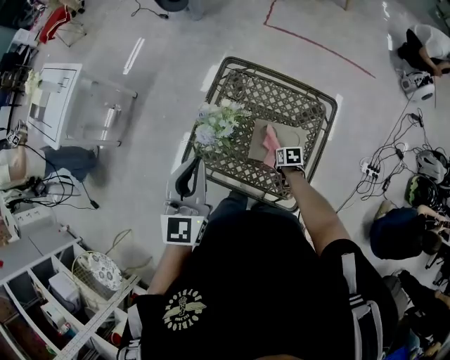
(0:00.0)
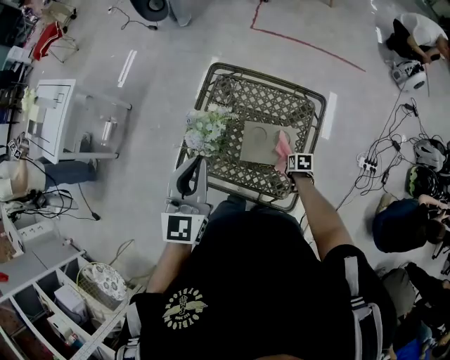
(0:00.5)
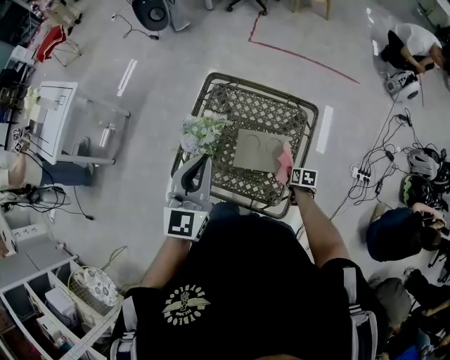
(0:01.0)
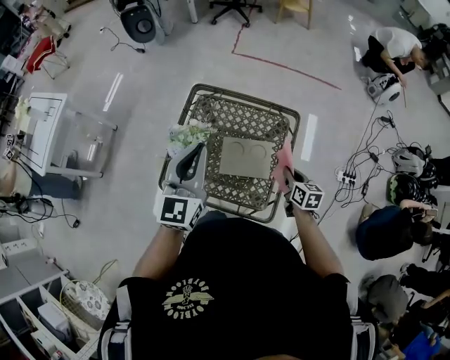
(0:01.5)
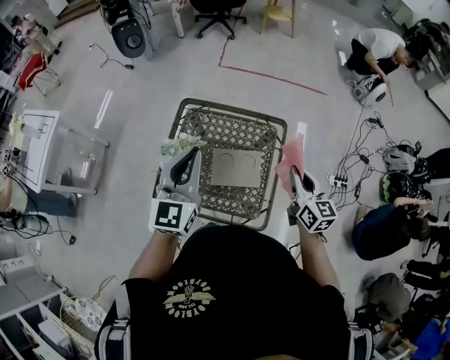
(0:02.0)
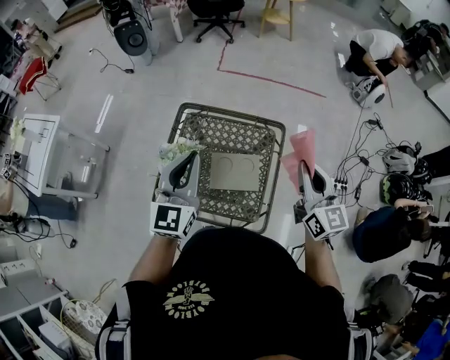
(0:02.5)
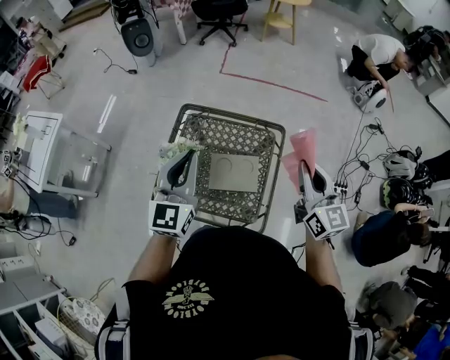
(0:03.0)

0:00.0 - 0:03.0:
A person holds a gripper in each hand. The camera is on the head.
0:00.0 - 0:01.5: The right gripper travels upward and to the right by approximately 25 cm, and swivels roughly 30 degrees. Meanwhile the left gripper heads to the right, covering roughly 10 cm.
0:01.5 - 0:03.0: The right gripper heads upward, covering roughly 30 cm, and points its fingers some 30 degrees further upward.

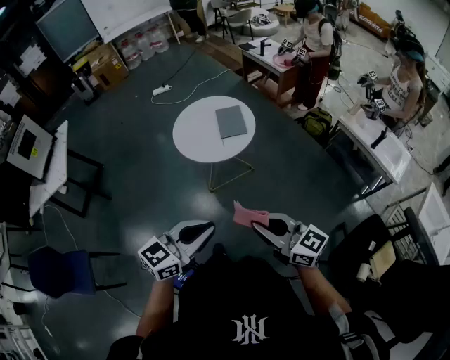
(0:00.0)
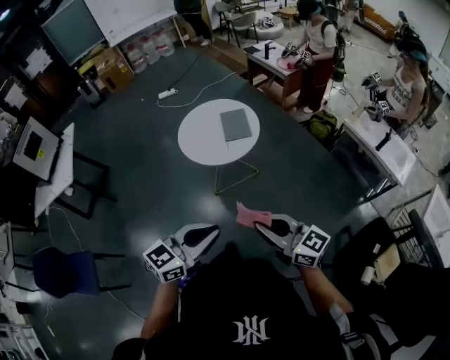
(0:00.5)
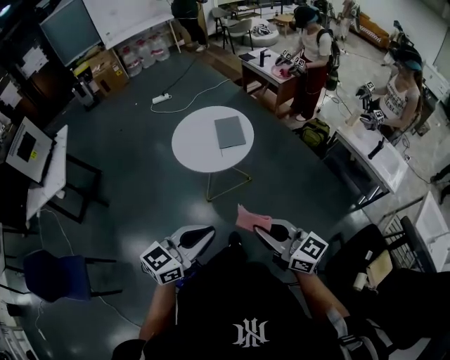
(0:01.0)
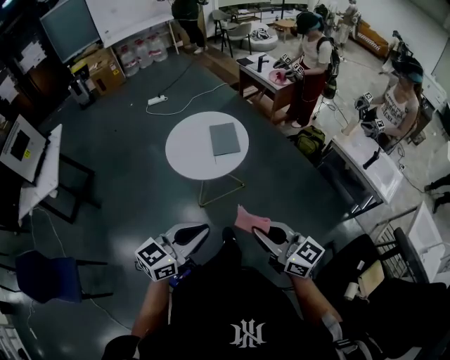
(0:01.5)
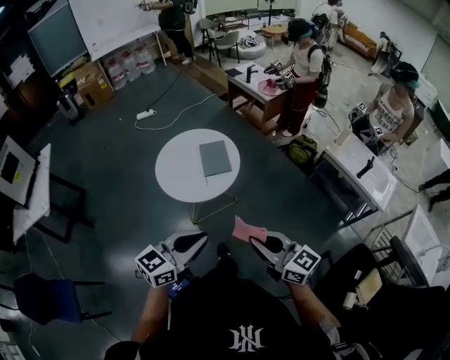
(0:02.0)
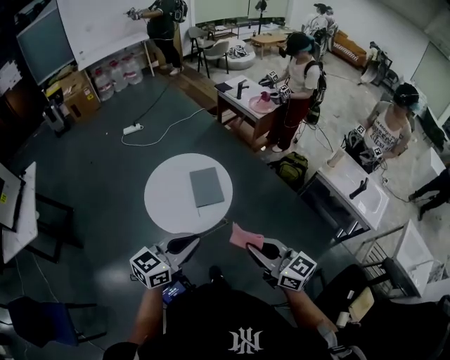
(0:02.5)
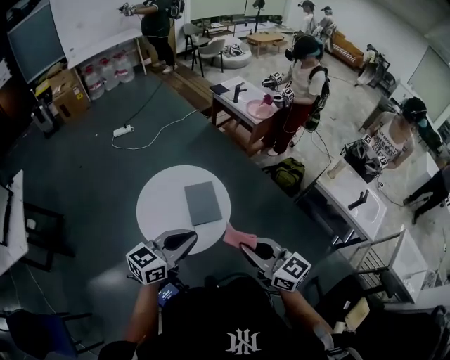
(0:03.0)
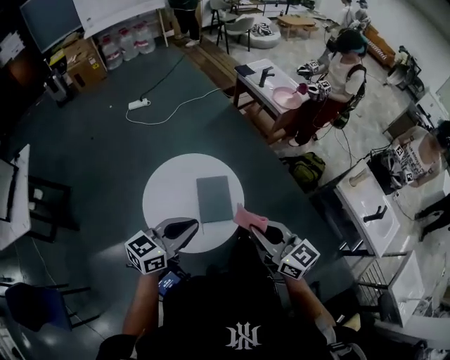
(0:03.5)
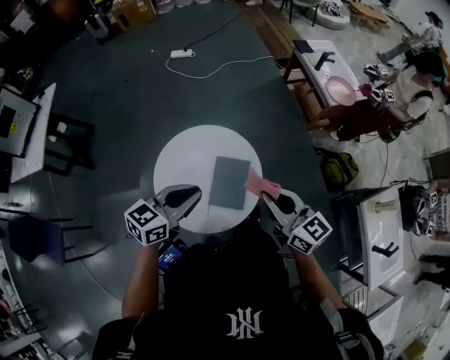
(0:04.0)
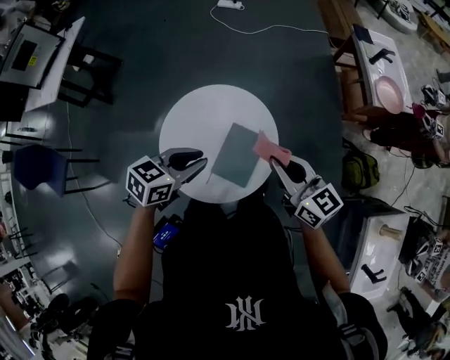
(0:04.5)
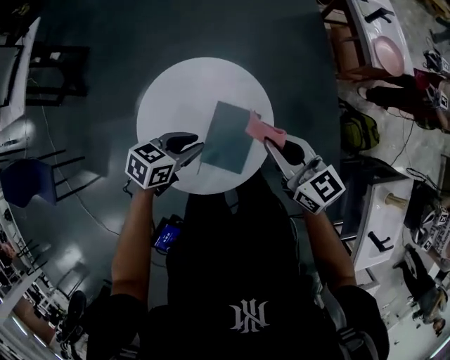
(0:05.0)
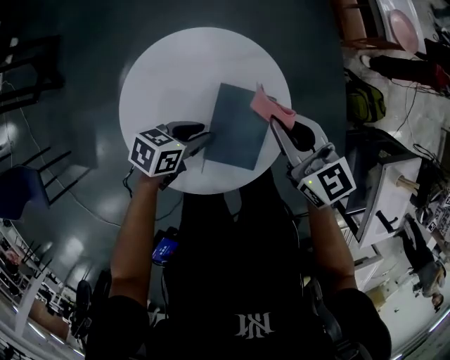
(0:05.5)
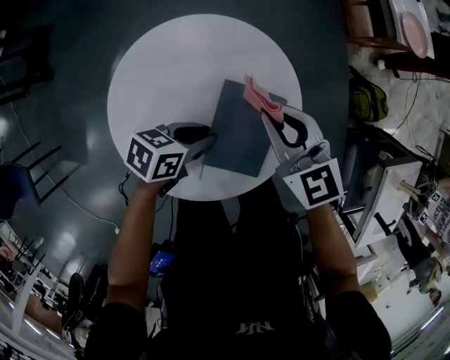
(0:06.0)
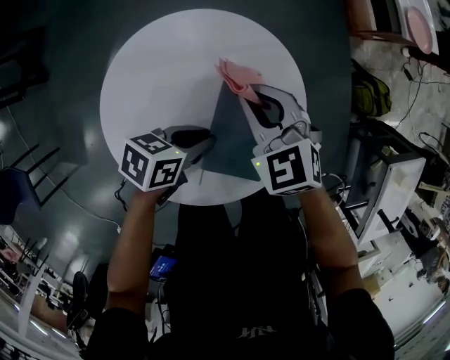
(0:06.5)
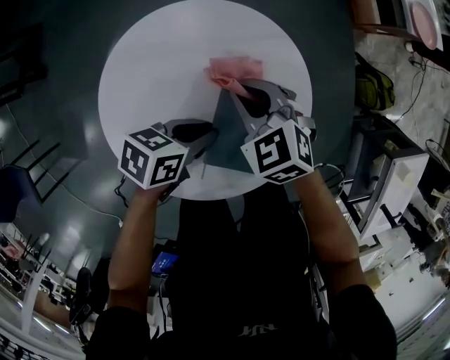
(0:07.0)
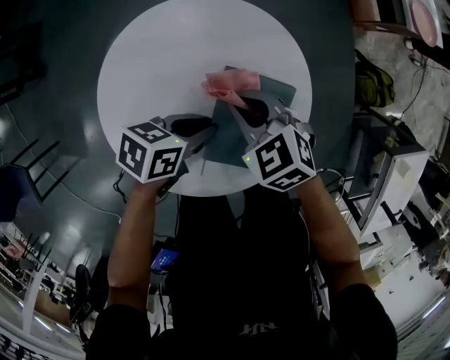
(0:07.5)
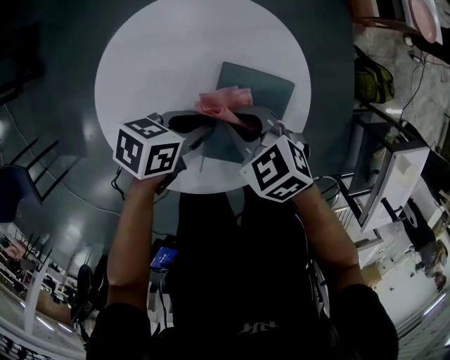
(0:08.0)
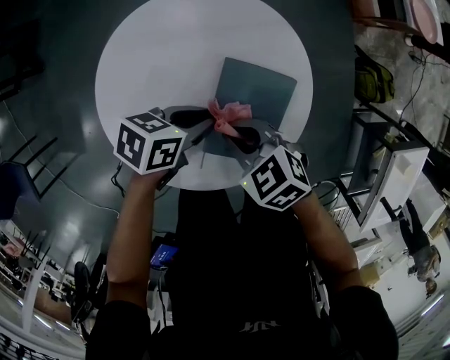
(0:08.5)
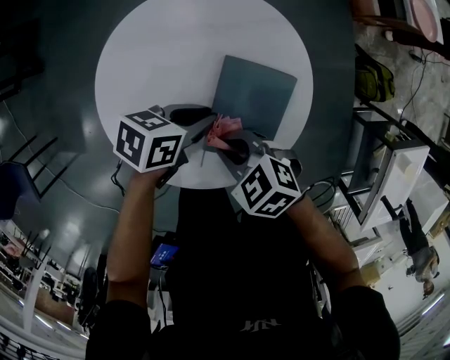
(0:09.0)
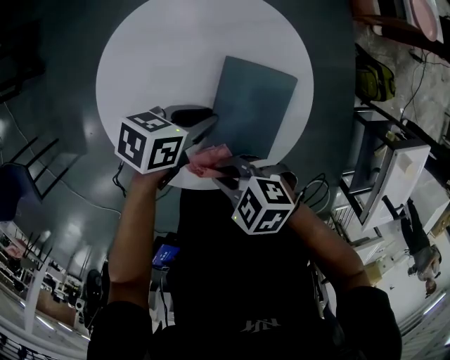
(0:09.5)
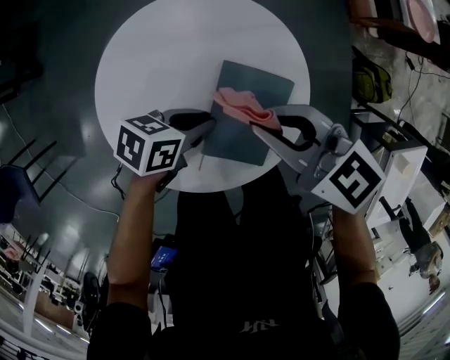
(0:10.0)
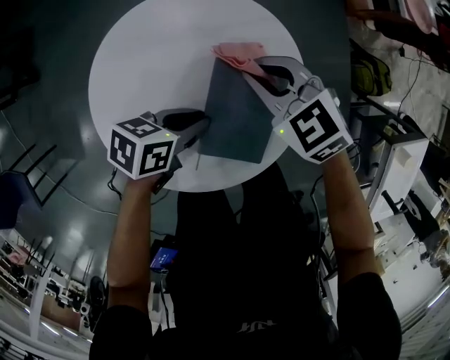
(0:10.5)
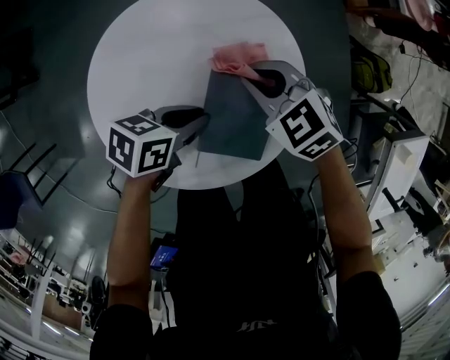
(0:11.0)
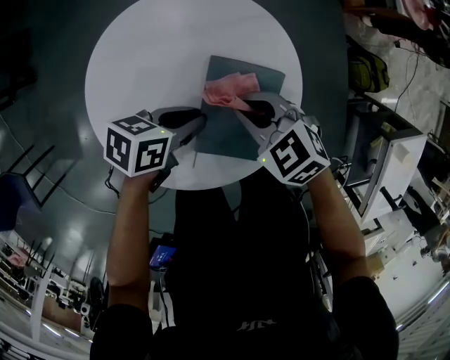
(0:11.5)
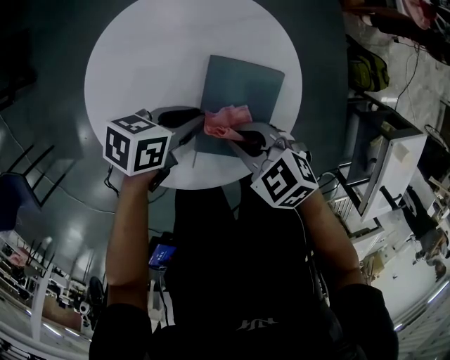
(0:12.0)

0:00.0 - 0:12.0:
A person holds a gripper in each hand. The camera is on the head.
0:00.0 - 0:02.0: Both grippers travel together forward, about 15 cm.
0:02.0 - 0:04.0: The two grippers travel together, forward, about 50 cm. The left gripper changes its angle by about 30 degrees.
0:04.0 - 0:06.0: The left gripper heads downward, covering about 35 cm, and rotates about 40 degrees, while the right gripper moves downward, forward and to the left, about 35 cm, and rotates roughly 30 degrees.
0:06.0 - 0:08.0: The right gripper ends up about 15 cm from where it was, and rotates roughly 30 degrees.
0:08.0 - 0:10.0: The right gripper is displaced upward by some 10 cm, and rotates approximately 20 degrees.
0:10.0 - 0:12.0: The right gripper travels downward by approximately 10 cm.

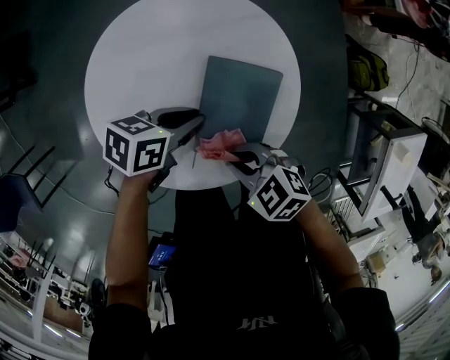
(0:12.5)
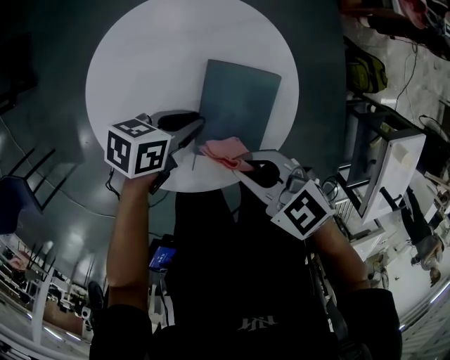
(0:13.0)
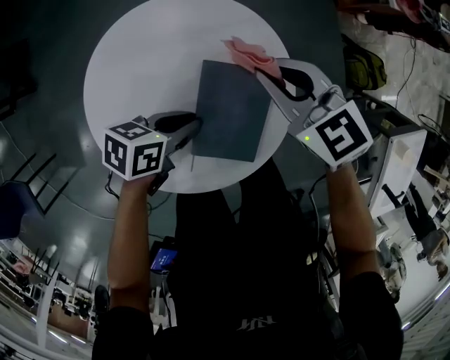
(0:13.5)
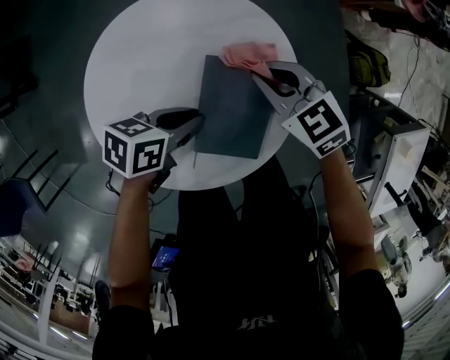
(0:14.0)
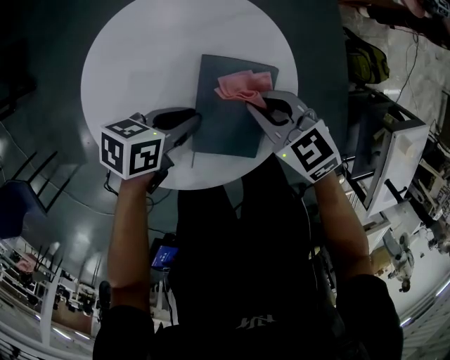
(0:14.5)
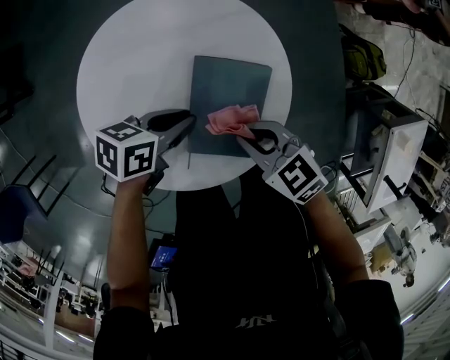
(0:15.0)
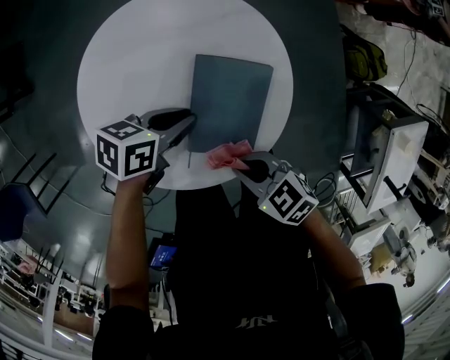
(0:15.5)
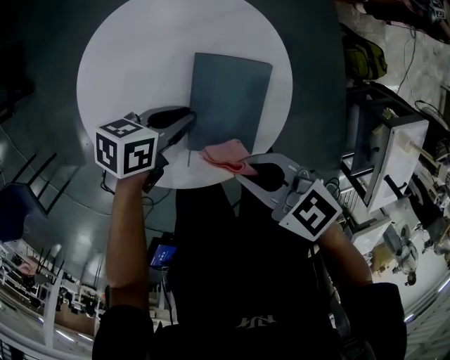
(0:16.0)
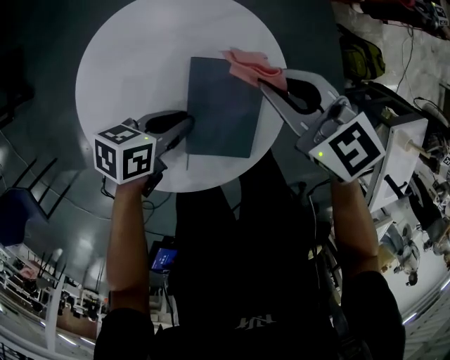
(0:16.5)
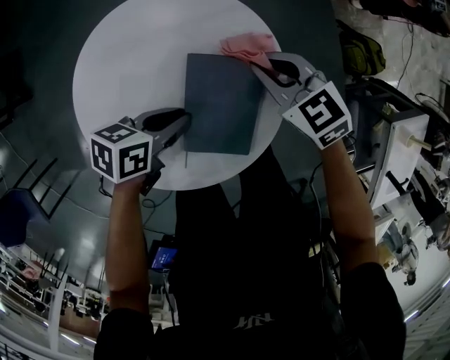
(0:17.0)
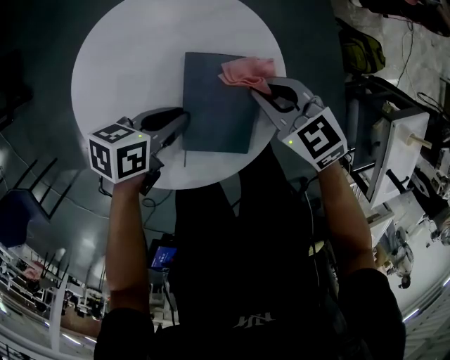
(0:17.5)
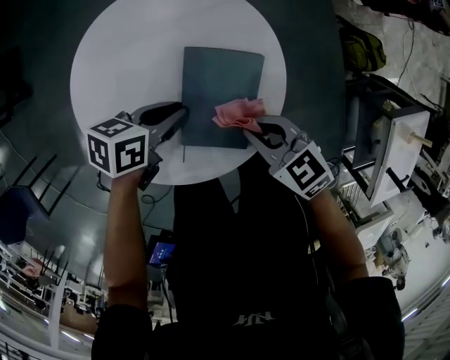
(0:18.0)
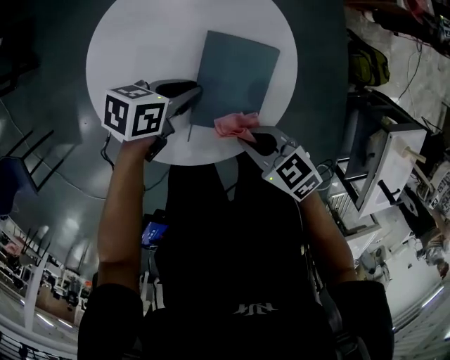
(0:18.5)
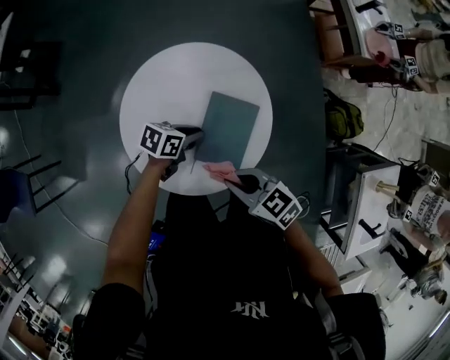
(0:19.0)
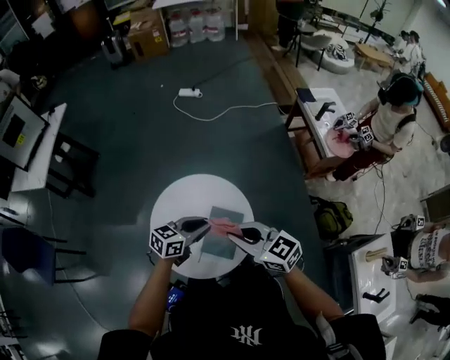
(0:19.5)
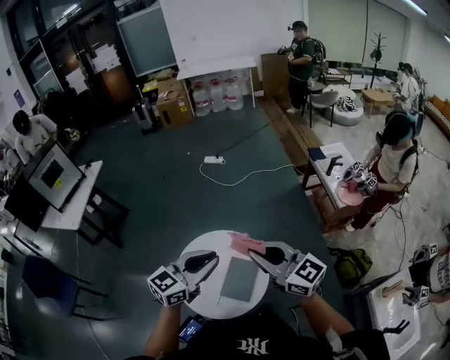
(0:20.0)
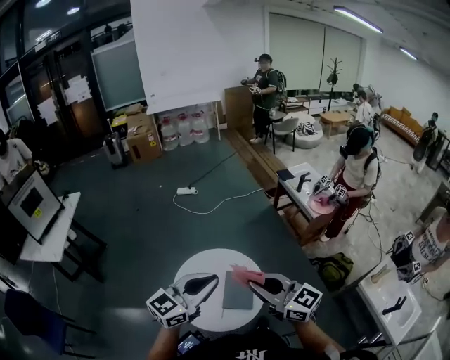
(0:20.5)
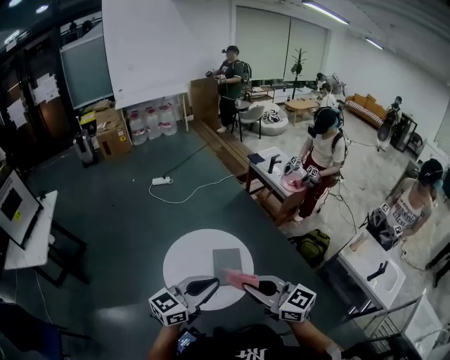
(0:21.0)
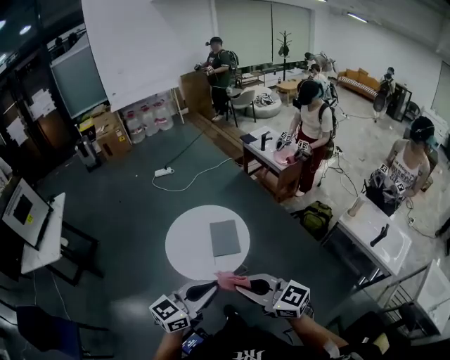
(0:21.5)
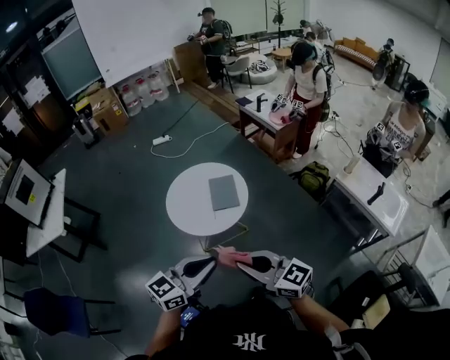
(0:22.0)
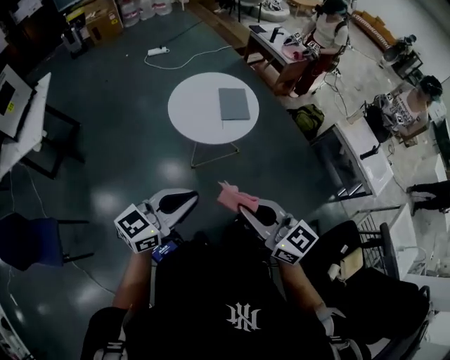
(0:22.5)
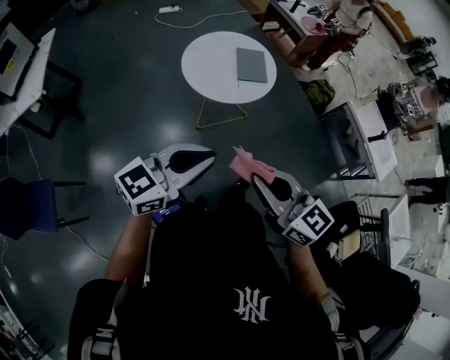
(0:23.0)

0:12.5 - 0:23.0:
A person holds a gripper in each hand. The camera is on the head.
0:12.5 - 0:14.5: The right gripper turns by about 20 degrees.
0:14.5 - 0:16.5: The right gripper moves upward, about 10 cm.
0:16.5 - 0:19.0: The right gripper goes downward and returns, about 10 cm each way.
0:19.0 - 0:21.0: The grippers both shift upward by approximately 50 cm. The right gripper tilts its fingers some 30 degrees upward. The left gripper points its fingers some 40 degrees further upward.
0:21.0 - 0:23.0: The two grippers travel together, backward, about 40 cm.

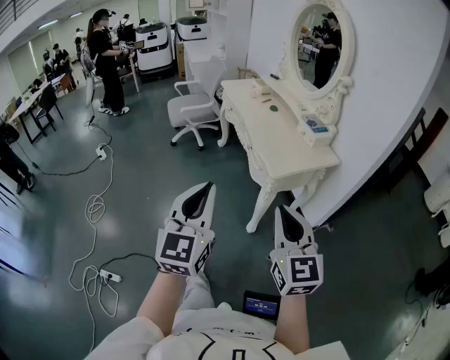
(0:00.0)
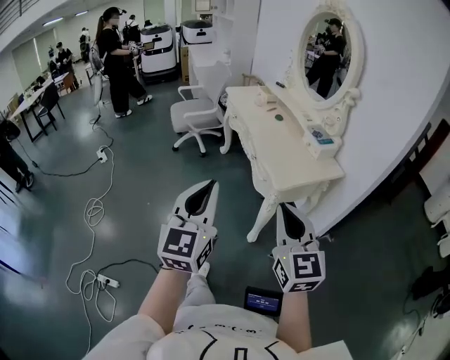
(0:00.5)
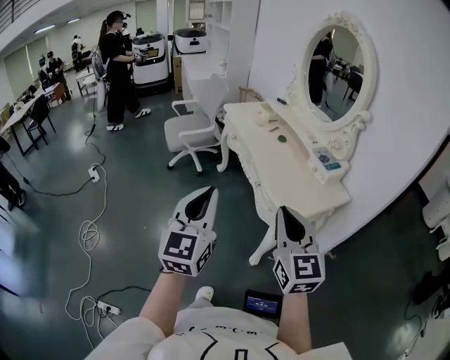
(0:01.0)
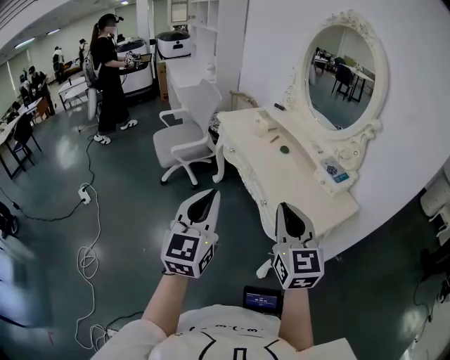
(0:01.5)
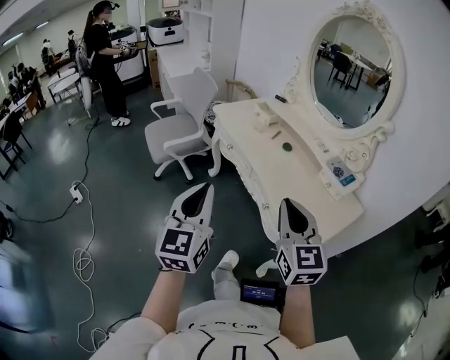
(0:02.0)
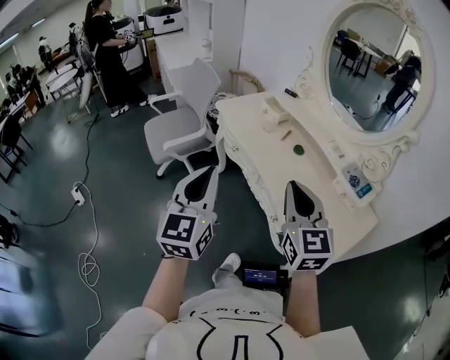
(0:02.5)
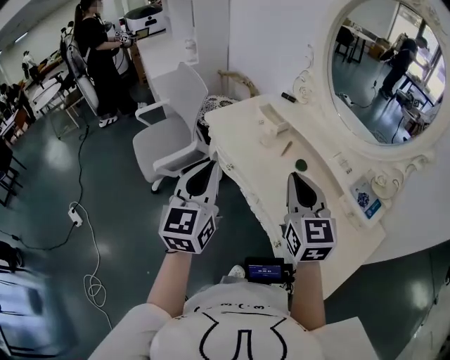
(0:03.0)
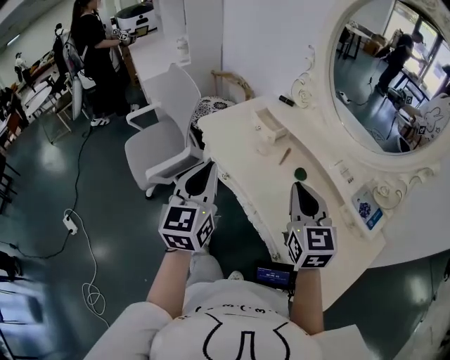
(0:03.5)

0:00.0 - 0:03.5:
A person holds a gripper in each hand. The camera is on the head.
0:00.0 - 0:02.0: The pair of grippers is taken forward, some 40 cm.
0:02.0 - 0:03.5: Both grippers travel together forward, approximately 35 cm.
